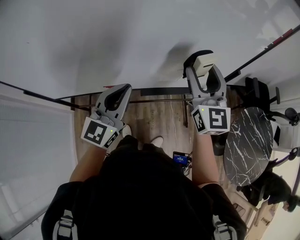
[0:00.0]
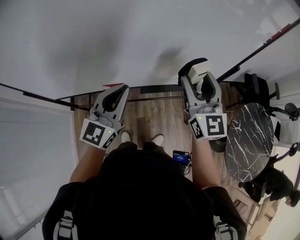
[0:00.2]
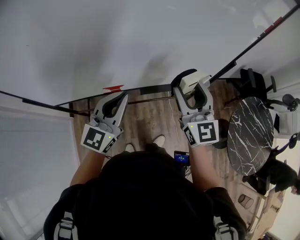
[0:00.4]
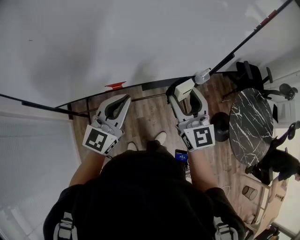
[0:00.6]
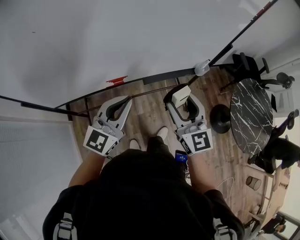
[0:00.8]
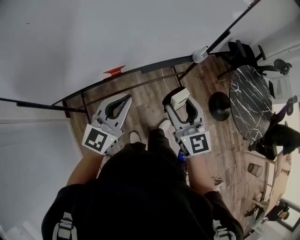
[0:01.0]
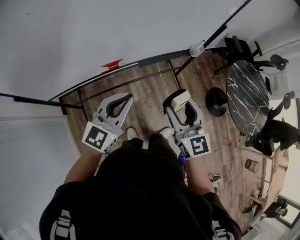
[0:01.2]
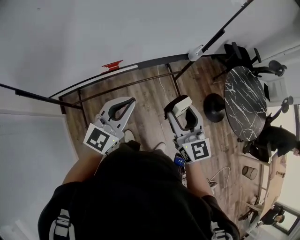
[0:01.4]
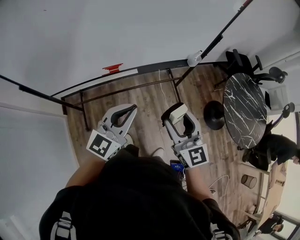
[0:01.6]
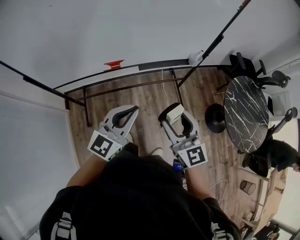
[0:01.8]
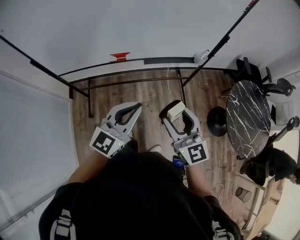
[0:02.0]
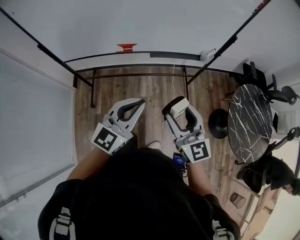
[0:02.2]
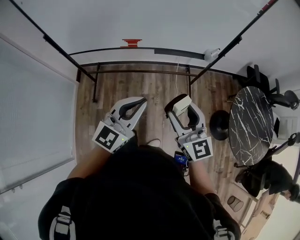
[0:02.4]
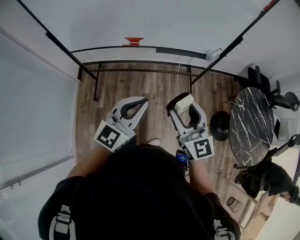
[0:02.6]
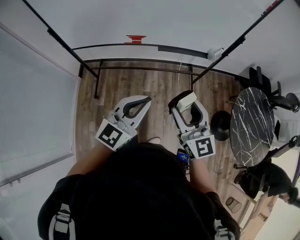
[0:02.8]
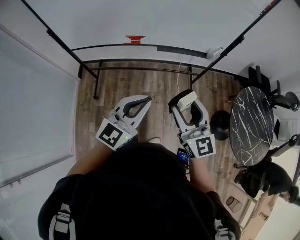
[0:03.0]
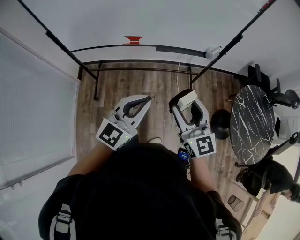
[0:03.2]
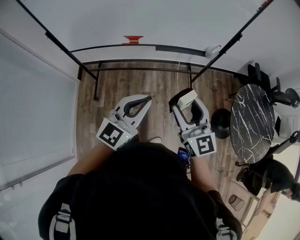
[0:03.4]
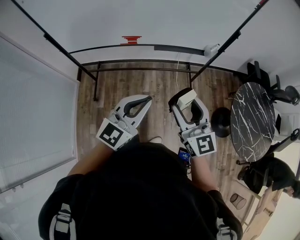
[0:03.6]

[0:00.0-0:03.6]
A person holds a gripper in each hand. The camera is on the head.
0:00.0 to 0:01.8: Both grippers move backward, about 30 cm.
0:01.8 to 0:03.6: The right gripper moves backward, about 5 cm. Meanwhile the left gripper shifts roughly 10 cm backward and to the right.

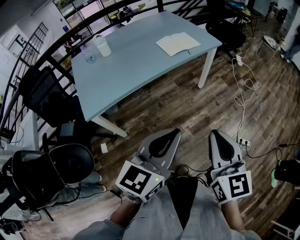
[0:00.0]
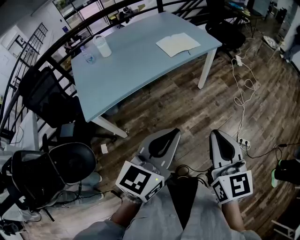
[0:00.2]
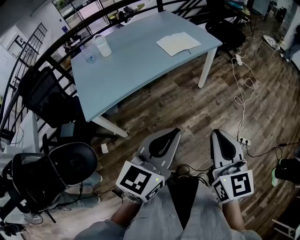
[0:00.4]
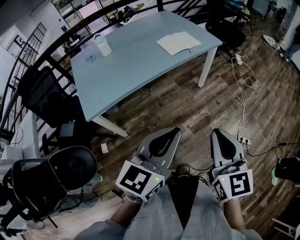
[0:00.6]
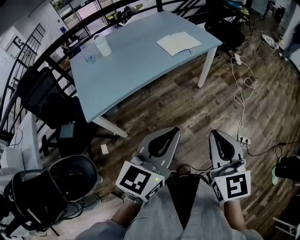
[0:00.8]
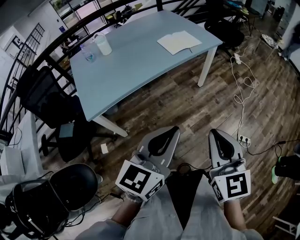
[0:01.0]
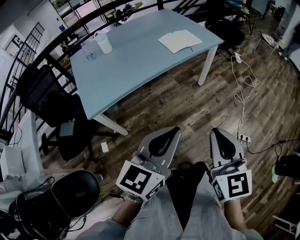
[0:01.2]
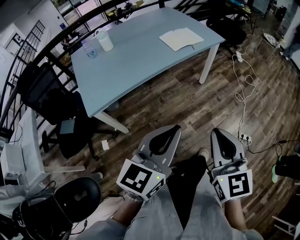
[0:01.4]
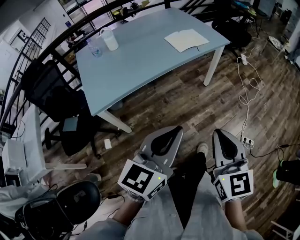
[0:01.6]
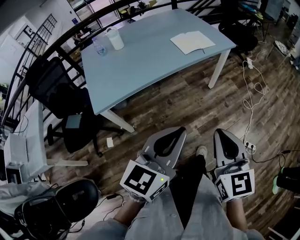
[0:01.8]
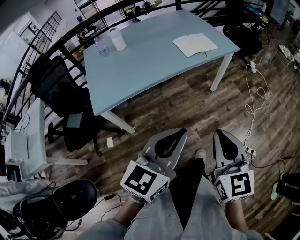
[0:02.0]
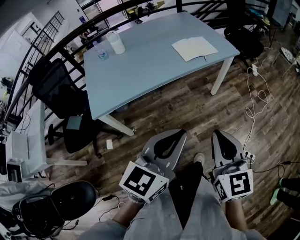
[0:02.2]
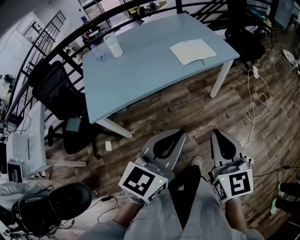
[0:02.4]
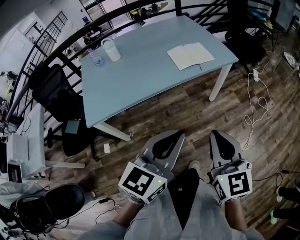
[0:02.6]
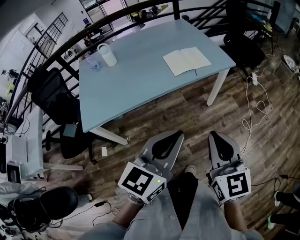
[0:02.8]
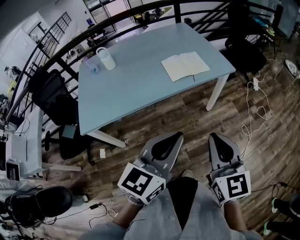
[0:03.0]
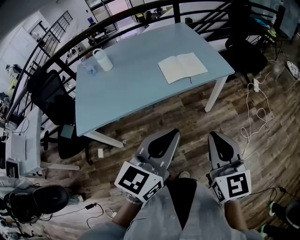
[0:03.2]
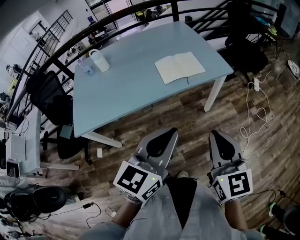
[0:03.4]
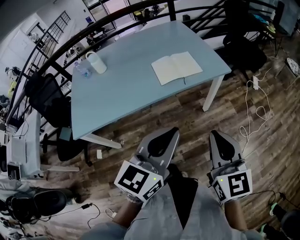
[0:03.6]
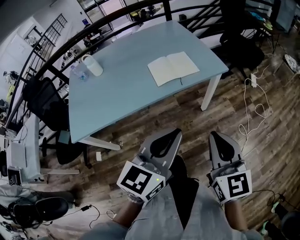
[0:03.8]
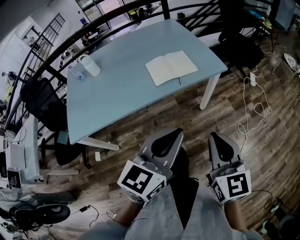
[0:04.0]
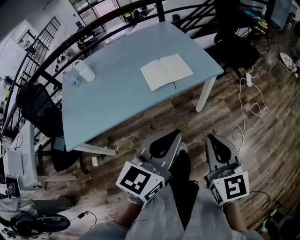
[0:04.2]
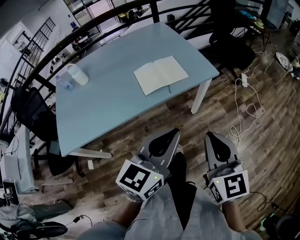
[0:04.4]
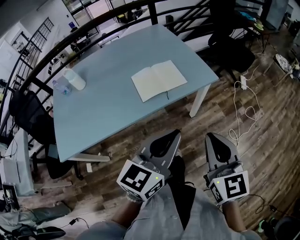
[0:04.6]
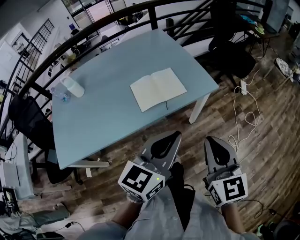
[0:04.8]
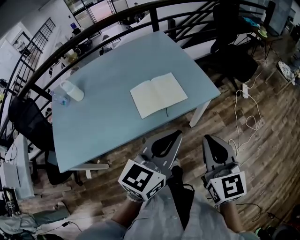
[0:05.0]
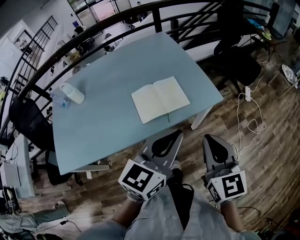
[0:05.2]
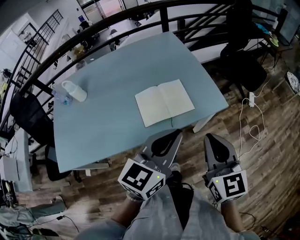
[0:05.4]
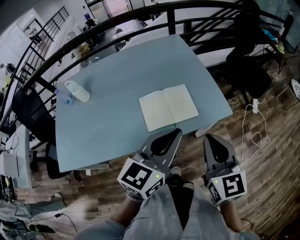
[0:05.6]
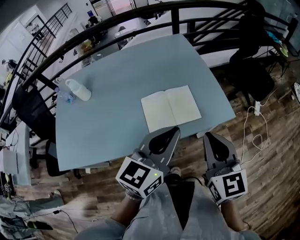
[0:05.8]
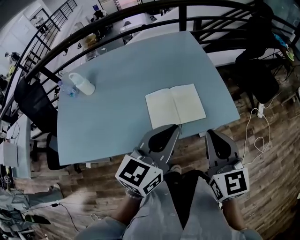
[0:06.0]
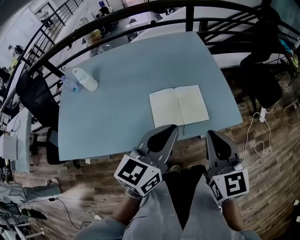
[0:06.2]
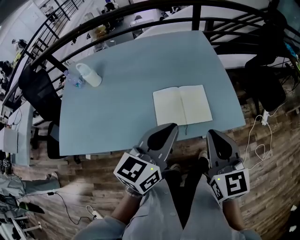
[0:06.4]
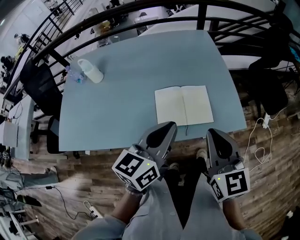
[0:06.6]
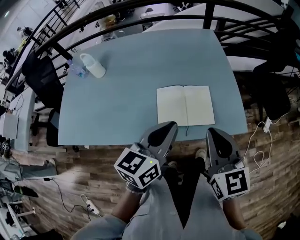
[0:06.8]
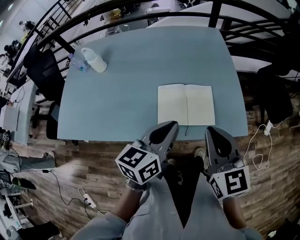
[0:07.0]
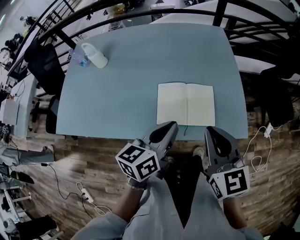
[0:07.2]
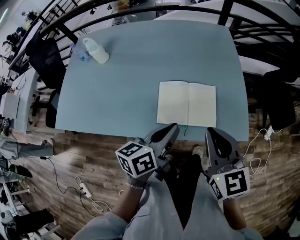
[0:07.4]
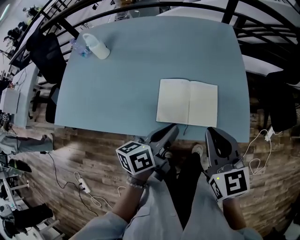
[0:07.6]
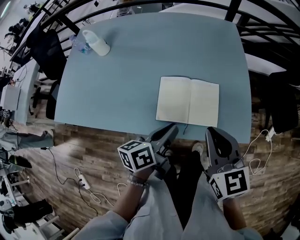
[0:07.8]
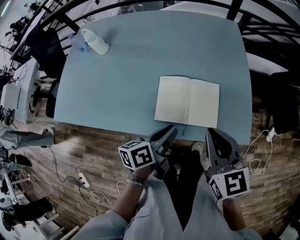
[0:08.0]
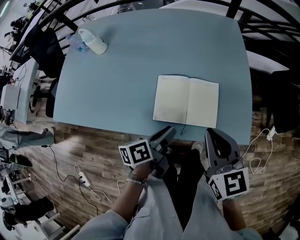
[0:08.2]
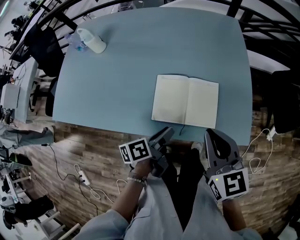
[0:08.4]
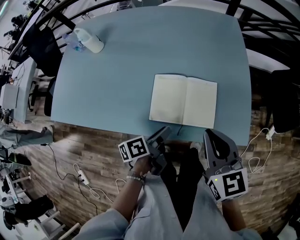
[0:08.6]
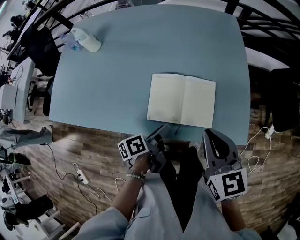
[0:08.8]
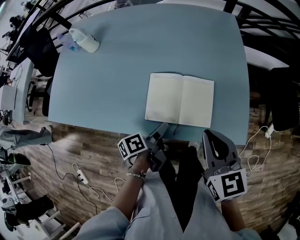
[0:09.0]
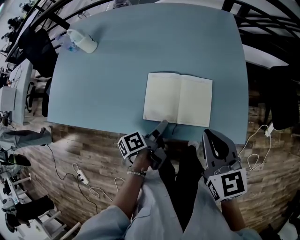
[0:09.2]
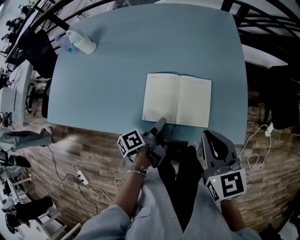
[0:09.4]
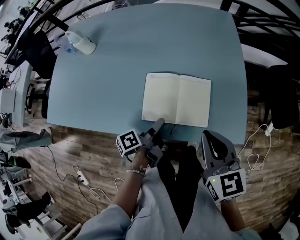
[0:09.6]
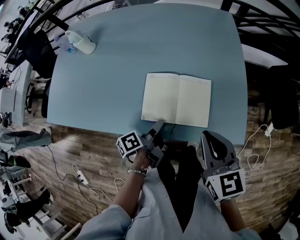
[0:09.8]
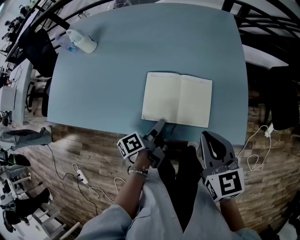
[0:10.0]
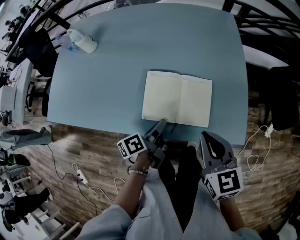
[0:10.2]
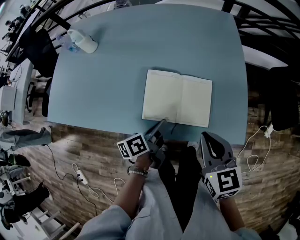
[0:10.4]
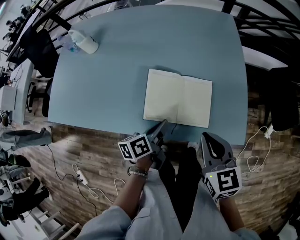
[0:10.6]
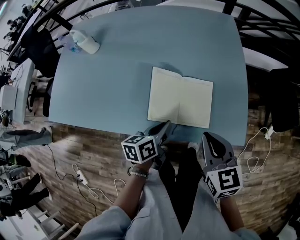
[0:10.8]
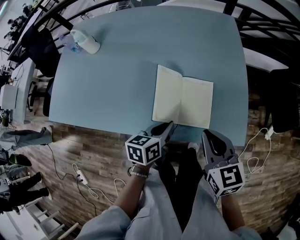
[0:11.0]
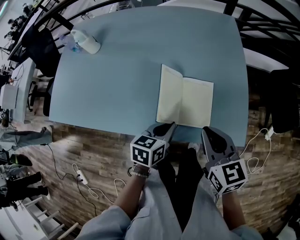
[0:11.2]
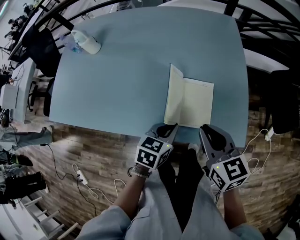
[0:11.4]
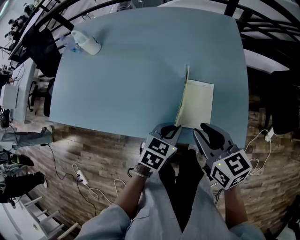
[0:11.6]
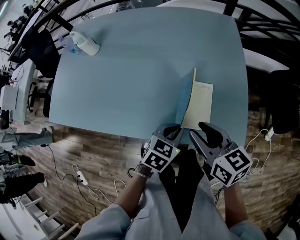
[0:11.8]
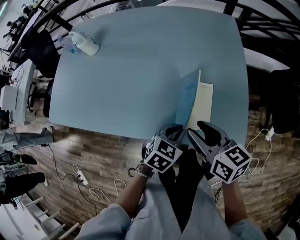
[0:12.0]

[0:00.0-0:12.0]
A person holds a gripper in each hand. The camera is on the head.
0:00.0 to 0:01.6: The grippers move only a little.
0:01.6 to 0:03.0: The two grippers go about 25 cm forward and to the right.
0:03.0 to 0:04.4: The grippers both shift forward and to the right by about 15 cm.
0:04.4 to 0:06.0: Both grippers travel together forward, about 25 cm.
0:06.0 to 0:07.6: The right gripper is displaced forward by some 10 cm, and turns by some 20 degrees; the left gripper heads downward, covering some 15 cm, and rotates around the line of its fingers by about 40 degrees, counterclockwise from behind.
0:07.6 to 0:09.0: The left gripper shifts roughly 15 cm downward, turns by about 40 degrees, and opens its fingers, while the right gripper shifts by approximately 5 cm.
0:09.0 to 0:10.4: The left gripper closes its fingers.
0:10.4 to 0:12.0: The right gripper rotates about 30 degrees, and opens. Meanwhile the left gripper is displaced to the right by roughly 10 cm, and rolls clockwise, seen from behind, by about 60 degrees.

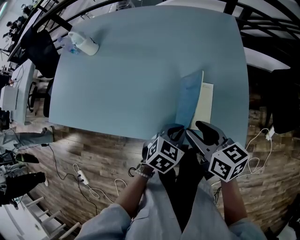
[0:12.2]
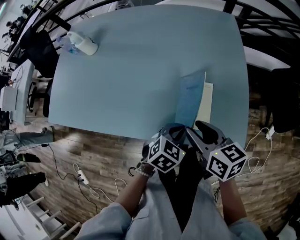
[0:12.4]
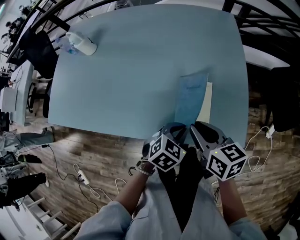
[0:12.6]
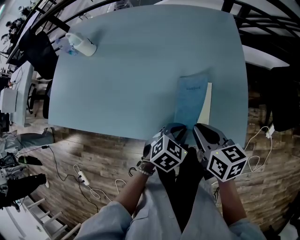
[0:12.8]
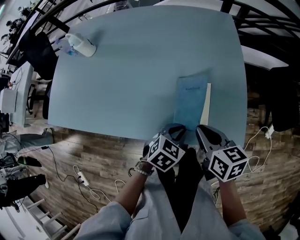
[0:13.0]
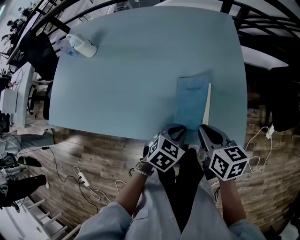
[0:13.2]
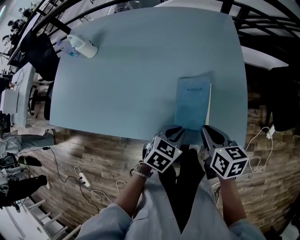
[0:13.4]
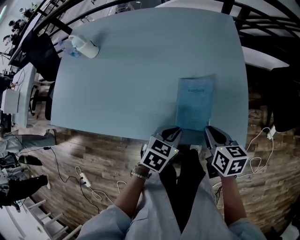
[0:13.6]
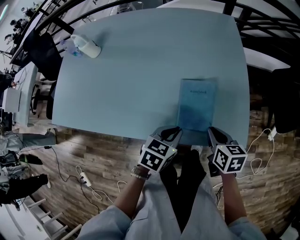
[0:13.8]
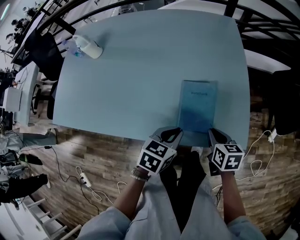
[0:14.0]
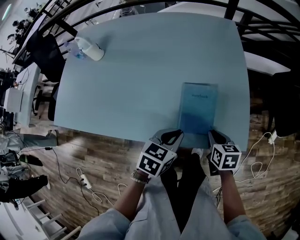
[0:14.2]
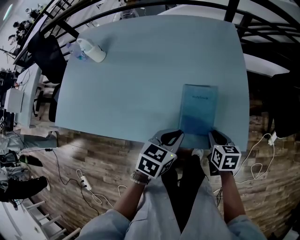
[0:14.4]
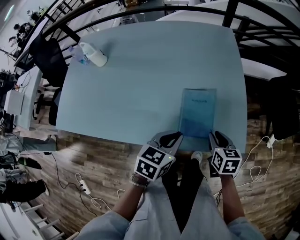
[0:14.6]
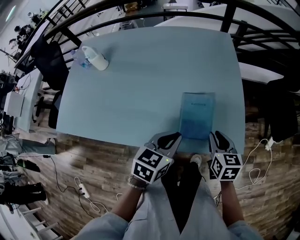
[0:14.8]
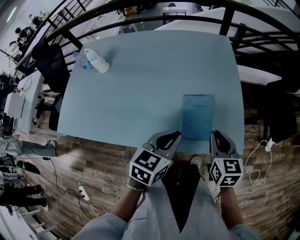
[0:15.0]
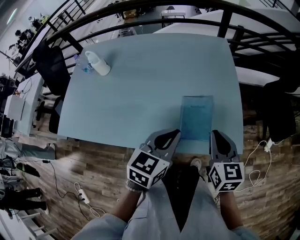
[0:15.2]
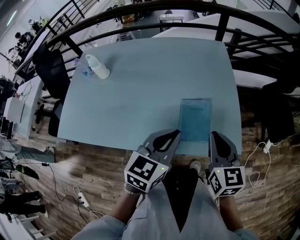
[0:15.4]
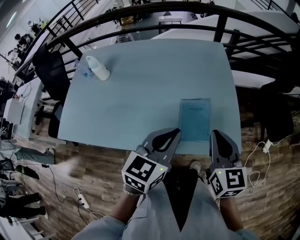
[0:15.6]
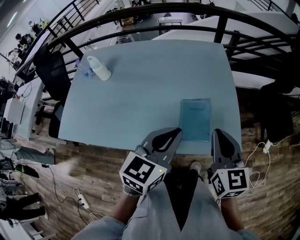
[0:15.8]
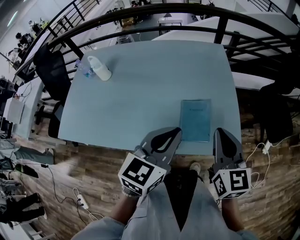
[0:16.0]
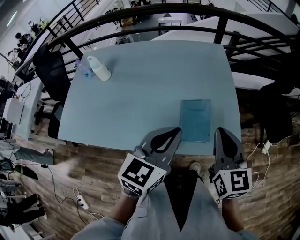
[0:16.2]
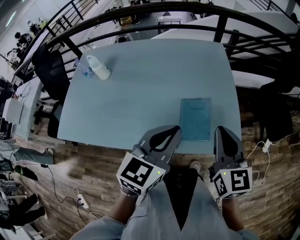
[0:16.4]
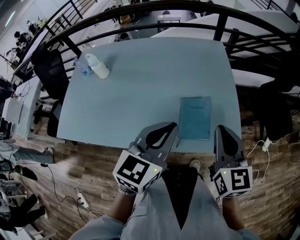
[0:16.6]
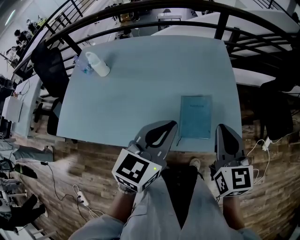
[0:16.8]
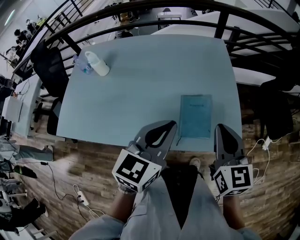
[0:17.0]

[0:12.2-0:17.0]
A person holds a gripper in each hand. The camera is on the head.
0:12.2 to 0:13.8: The right gripper goes some 10 cm downward and to the right, swivels some 20 degrees, and closes up.
0:13.8 to 0:15.4: The two grippers go roughly 20 cm upward. The right gripper turns by about 30 degrees, while the left gripper rotates approximately 30 degrees.
0:15.4 to 0:17.0: The left gripper is displaced upward by some 5 cm.

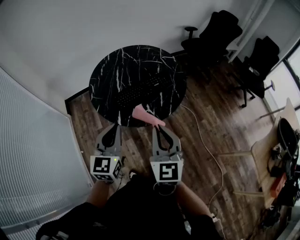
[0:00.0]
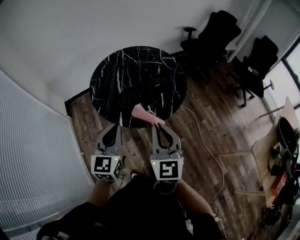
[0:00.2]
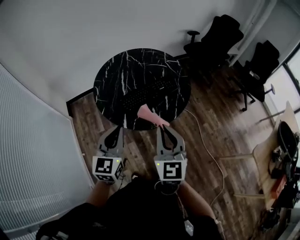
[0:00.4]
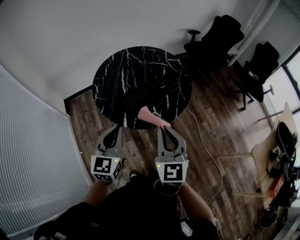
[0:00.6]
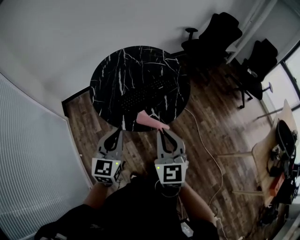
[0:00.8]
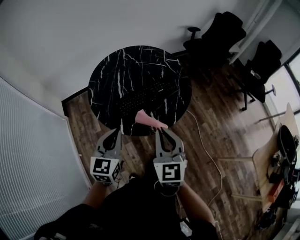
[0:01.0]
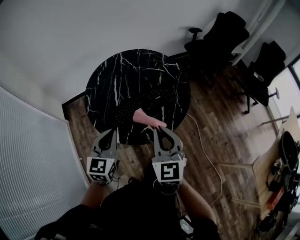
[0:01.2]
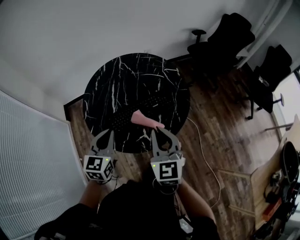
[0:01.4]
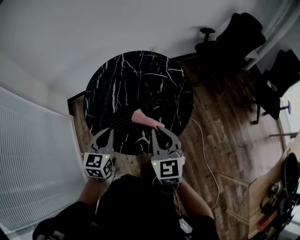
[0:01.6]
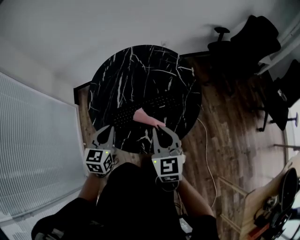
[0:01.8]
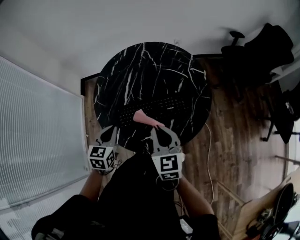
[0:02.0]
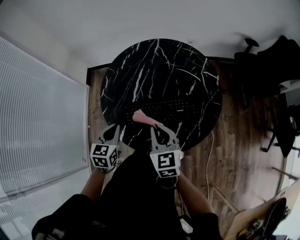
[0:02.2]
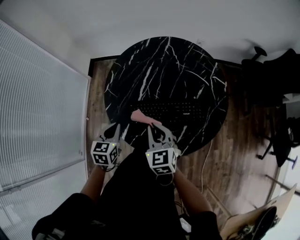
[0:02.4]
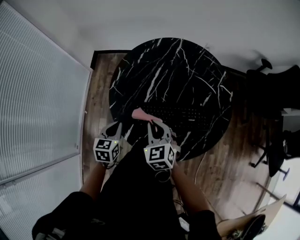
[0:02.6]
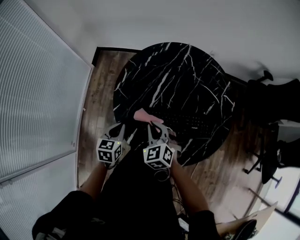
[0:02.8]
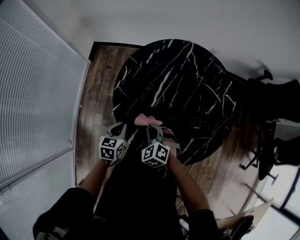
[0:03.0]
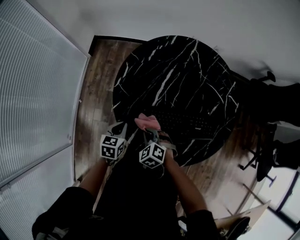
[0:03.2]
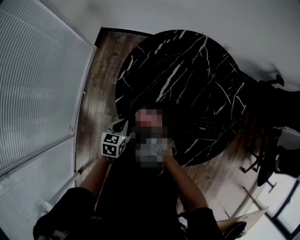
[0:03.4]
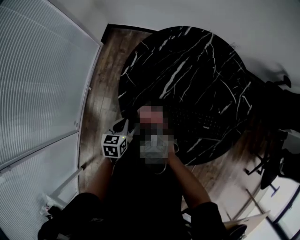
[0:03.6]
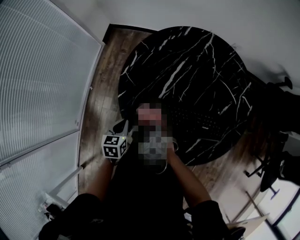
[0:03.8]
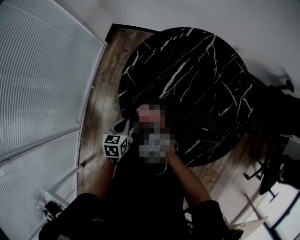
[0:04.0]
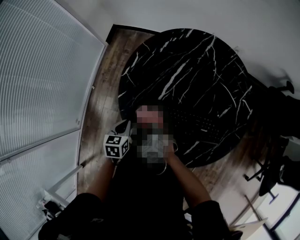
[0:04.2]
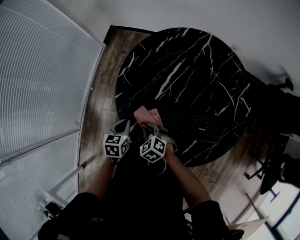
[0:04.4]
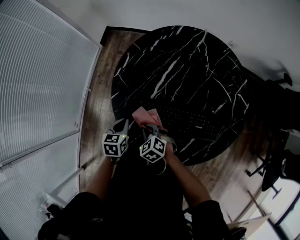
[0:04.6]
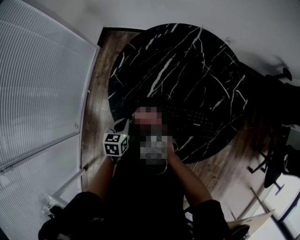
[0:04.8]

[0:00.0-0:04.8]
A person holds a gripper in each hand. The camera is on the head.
0:00.0 to 0:01.6: The two grippers go approximately 20 cm forward.
0:01.6 to 0:03.2: The two grippers go about 25 cm downward. The left gripper swivels roughly 40 degrees; the right gripper points its fingers about 50 degrees further downward.
0:03.2 to 0:04.8: The left gripper ends up some 5 cm from where it was. Meanwhile the right gripper ends up about 5 cm from where it was.
